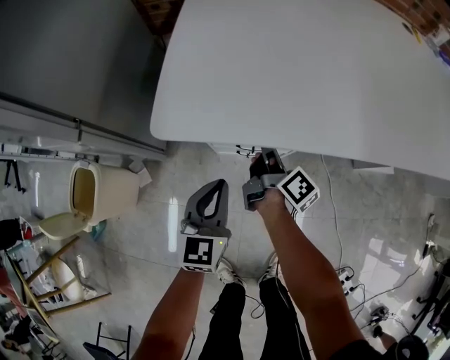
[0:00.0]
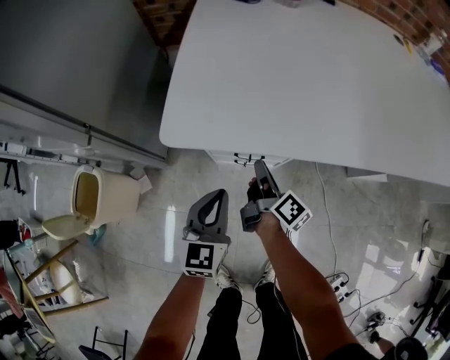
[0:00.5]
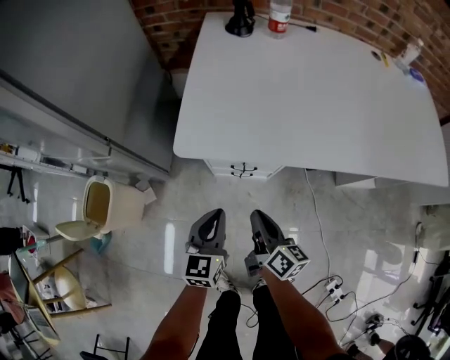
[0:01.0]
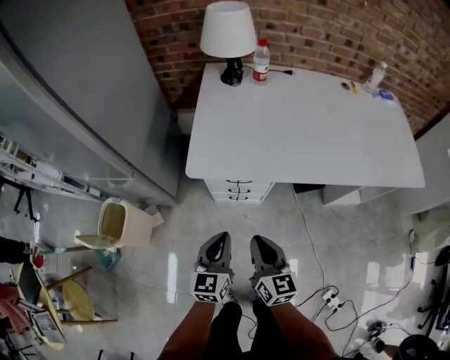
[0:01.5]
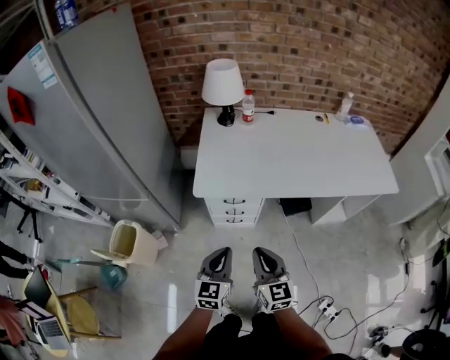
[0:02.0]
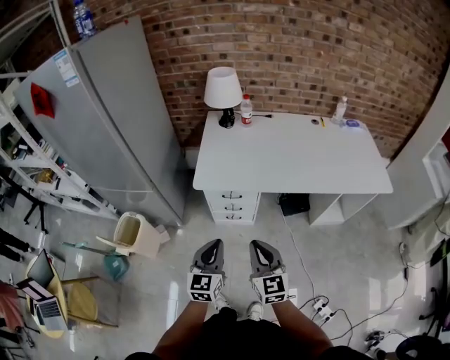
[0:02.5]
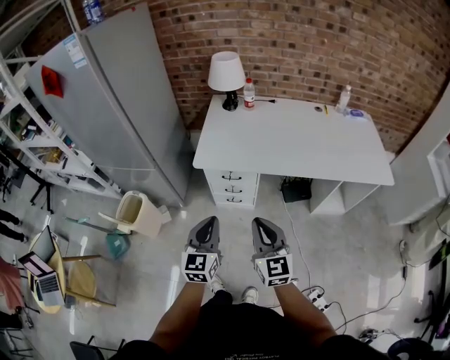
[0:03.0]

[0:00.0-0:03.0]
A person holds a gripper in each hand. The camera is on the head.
0:00.0 to 0:01.5: The left gripper travels upward and backward by some 20 cm; the right gripper goes about 35 cm backward and upward, and rolls counterclockwise, seen from behind, by some 60 degrees.
0:01.5 to 0:03.0: The two grippers go roughly 25 cm upward and backward. The right gripper turns by approximately 20 degrees.

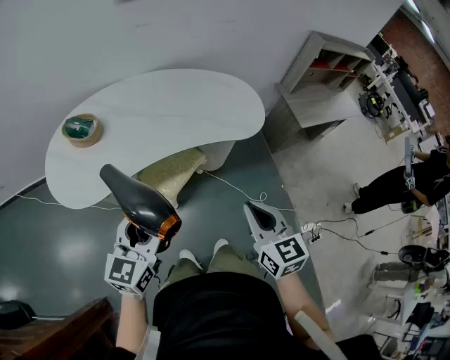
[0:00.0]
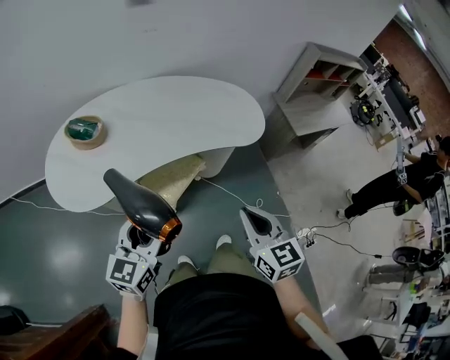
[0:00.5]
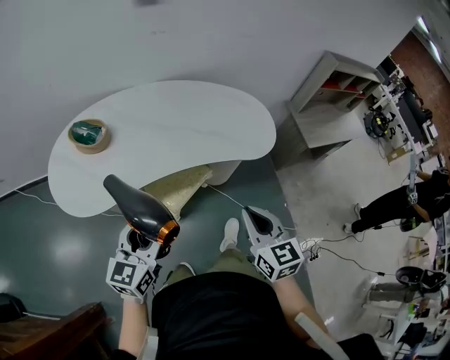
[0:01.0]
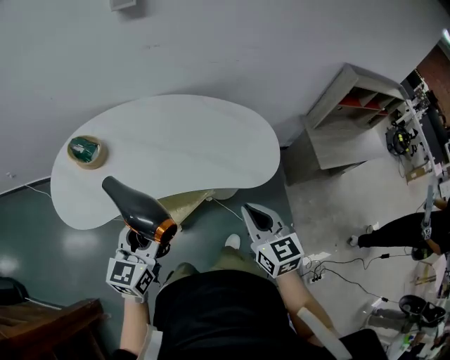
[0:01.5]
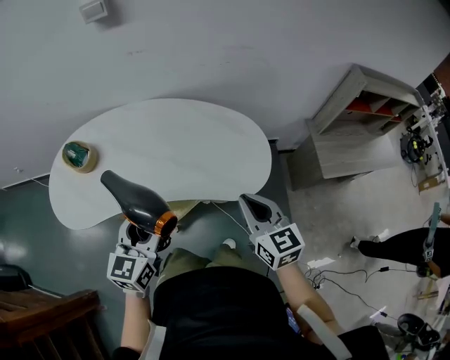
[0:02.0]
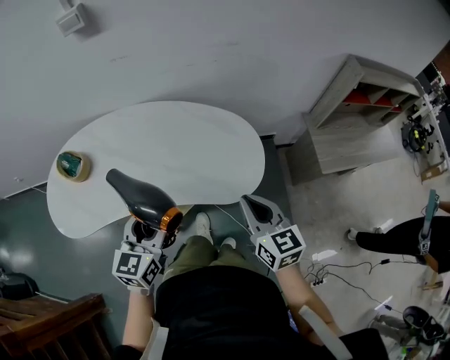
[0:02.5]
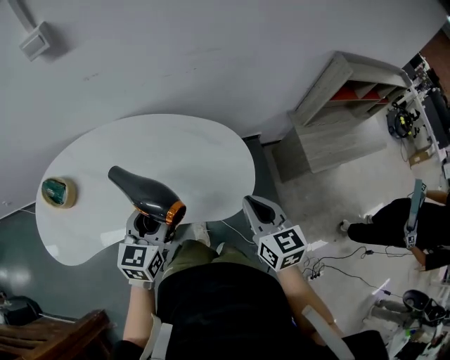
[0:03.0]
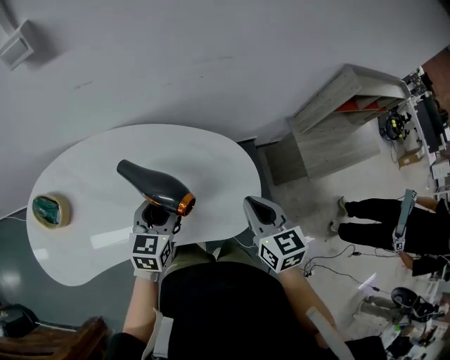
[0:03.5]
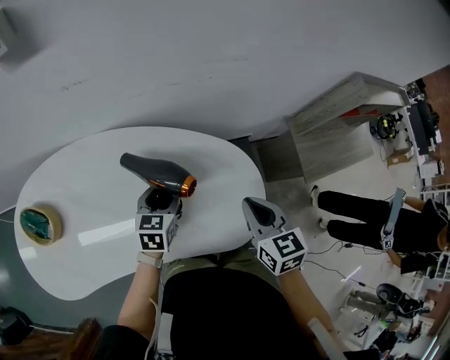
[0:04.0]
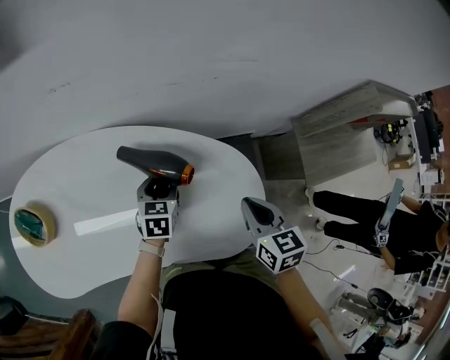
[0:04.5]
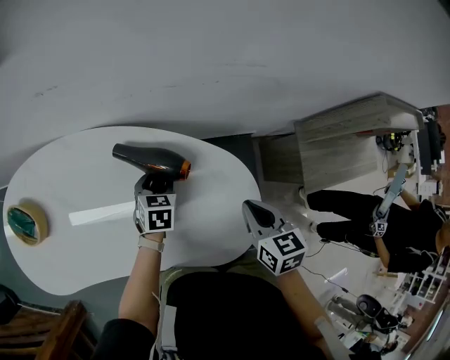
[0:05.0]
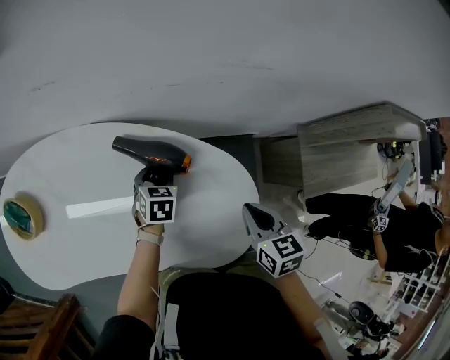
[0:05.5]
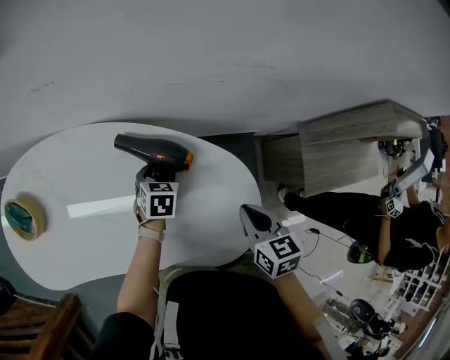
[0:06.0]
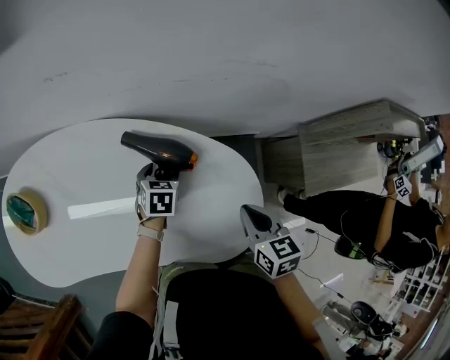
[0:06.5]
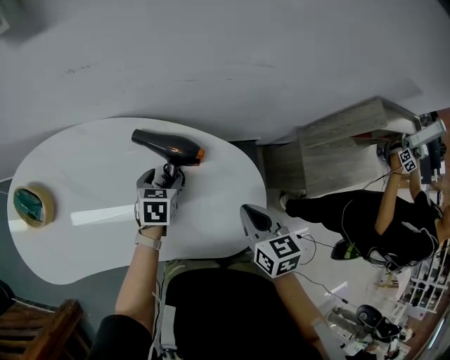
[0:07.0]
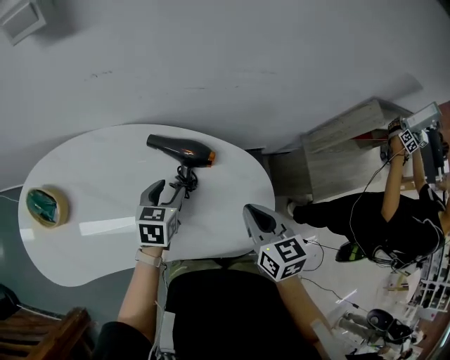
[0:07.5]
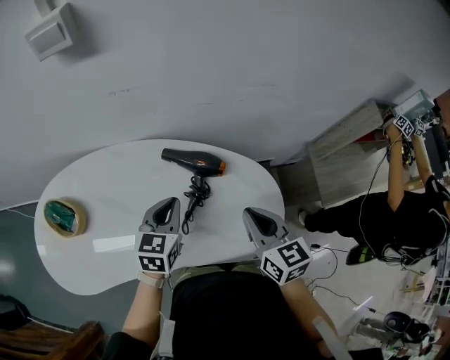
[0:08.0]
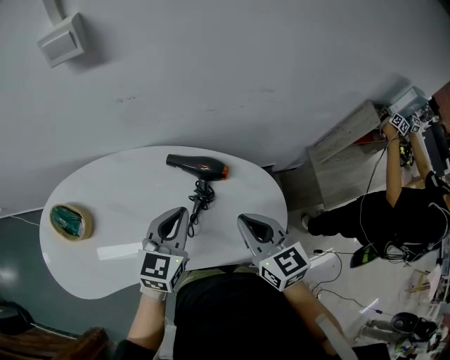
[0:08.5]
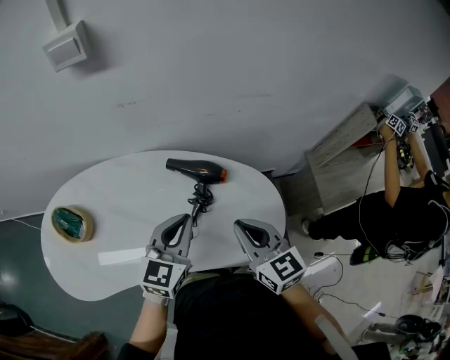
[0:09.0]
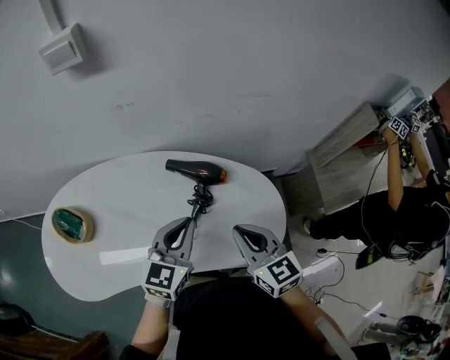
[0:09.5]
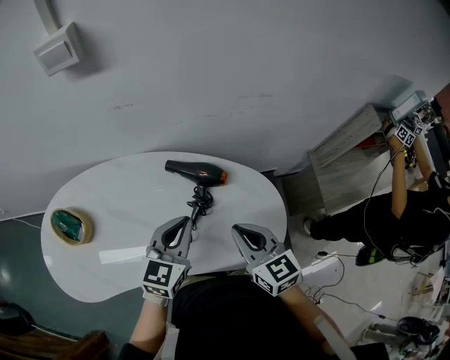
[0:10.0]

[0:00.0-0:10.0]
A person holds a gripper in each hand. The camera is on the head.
0:00.0 to 0:02.0: The two grippers go about 30 cm forward and to the right.
0:02.0 to 0:04.0: The left gripper goes some 40 cm forward and downward, and changes its angle by roughly 30 degrees, while the right gripper is displaced forward by approximately 25 cm, and swivels roughly 20 degrees.
0:04.0 to 0:06.0: Both grippers move downward and forward, about 10 cm. The left gripper turns by roughly 20 degrees.
0:06.0 to 0:08.0: The left gripper travels upward, backward and to the left by about 25 cm, changes its angle by about 30 degrees, and closes; the right gripper is displaced to the left, upward and backward by about 15 cm, and turns by some 20 degrees.
0:08.0 to 0:10.0: The left gripper heads upward, covering some 5 cm.

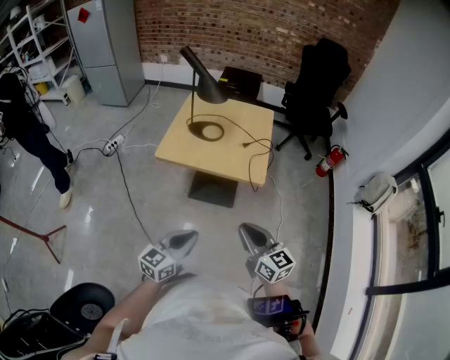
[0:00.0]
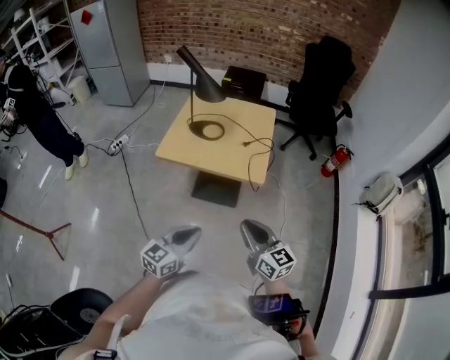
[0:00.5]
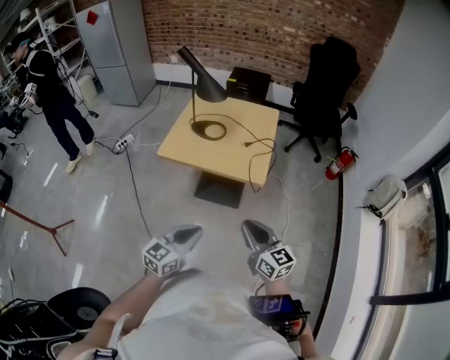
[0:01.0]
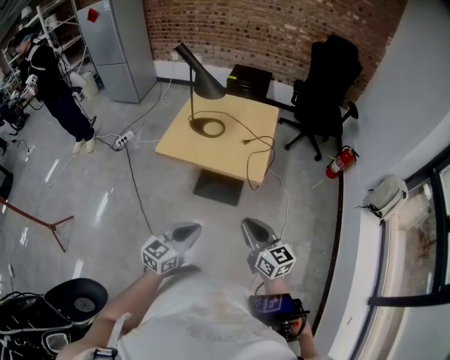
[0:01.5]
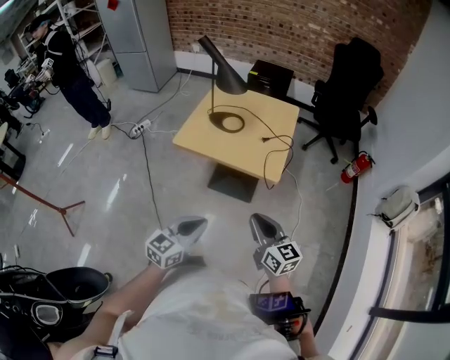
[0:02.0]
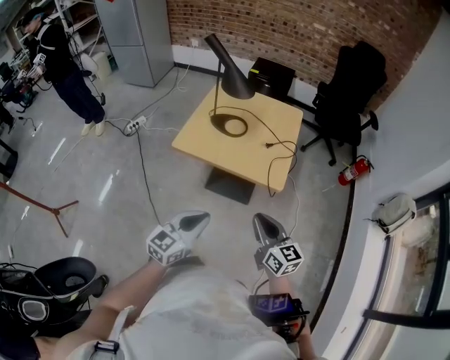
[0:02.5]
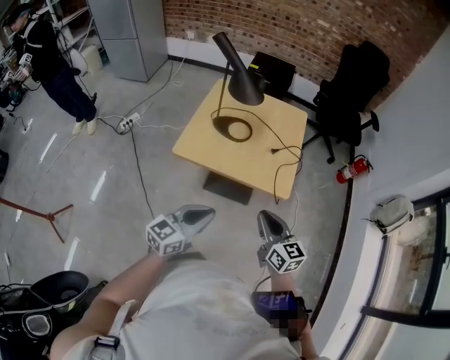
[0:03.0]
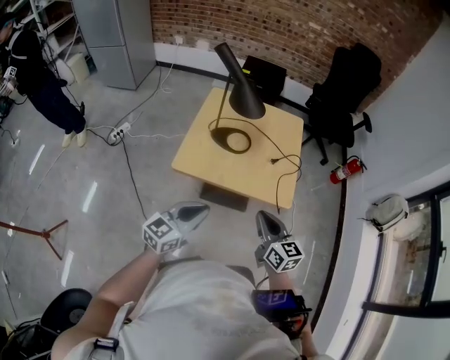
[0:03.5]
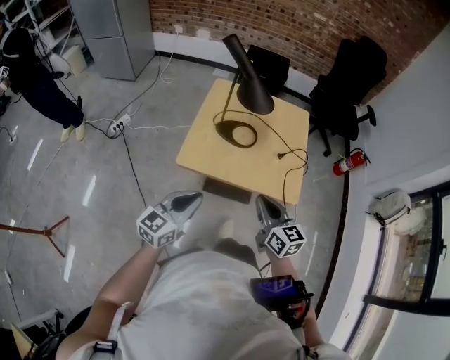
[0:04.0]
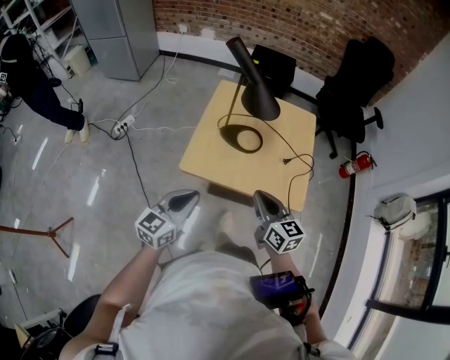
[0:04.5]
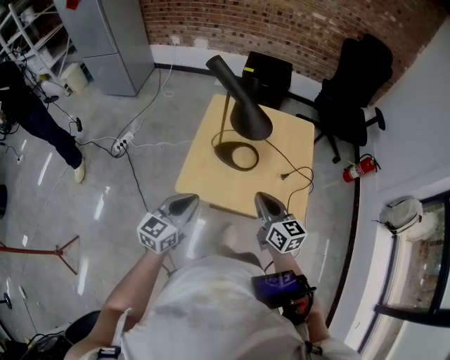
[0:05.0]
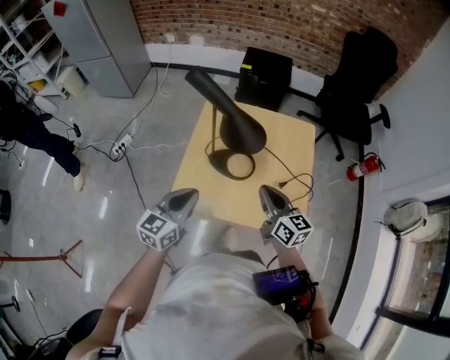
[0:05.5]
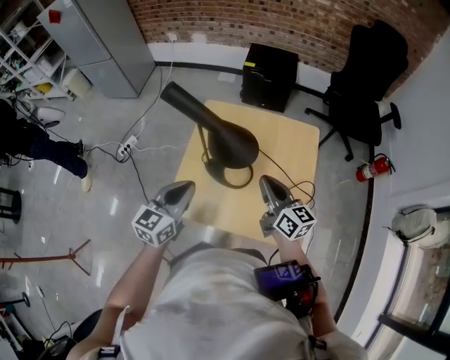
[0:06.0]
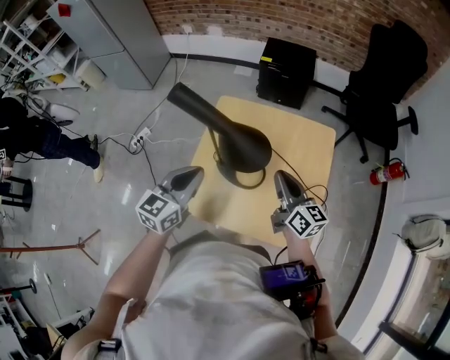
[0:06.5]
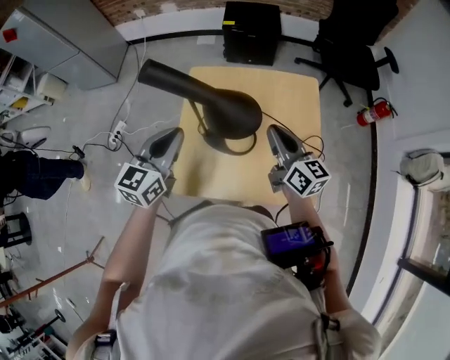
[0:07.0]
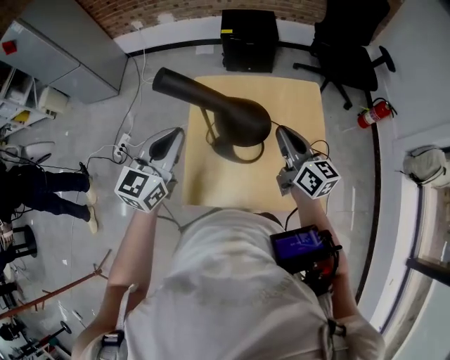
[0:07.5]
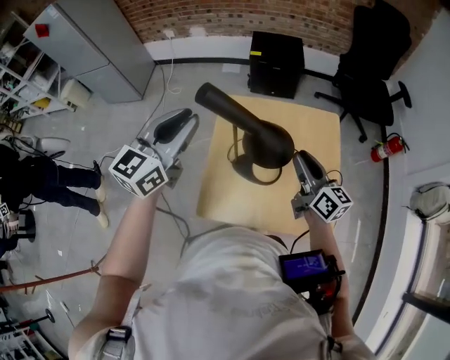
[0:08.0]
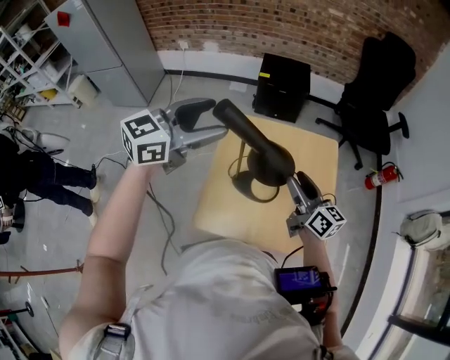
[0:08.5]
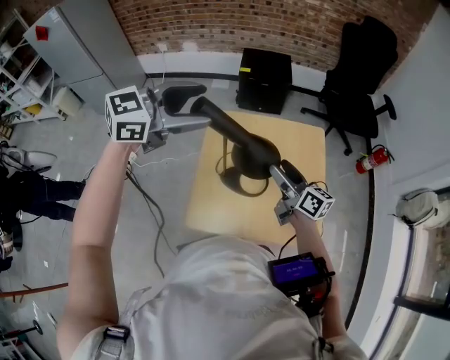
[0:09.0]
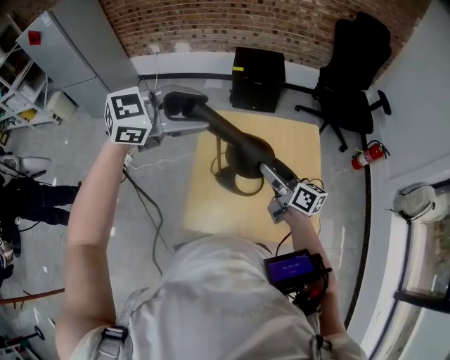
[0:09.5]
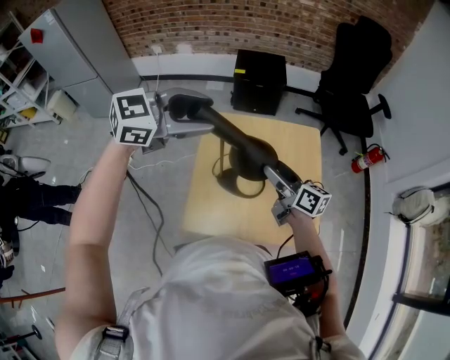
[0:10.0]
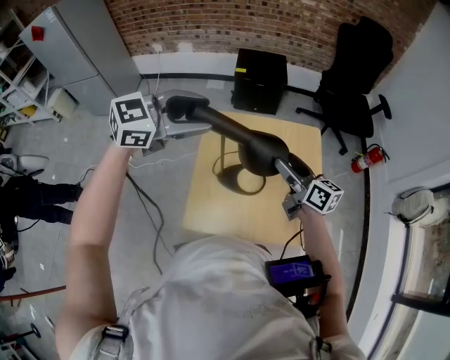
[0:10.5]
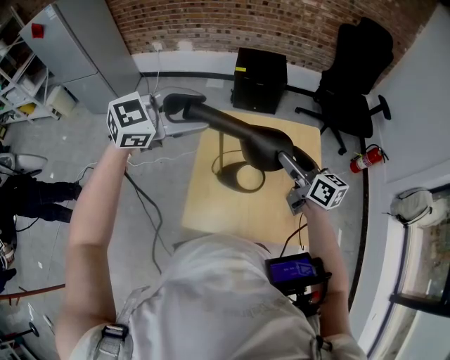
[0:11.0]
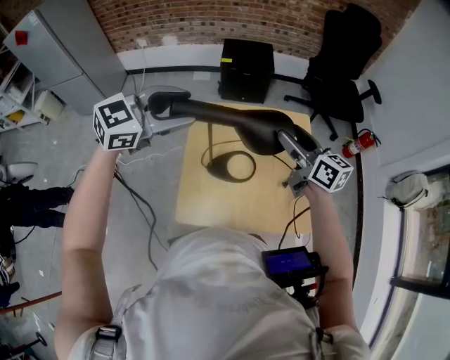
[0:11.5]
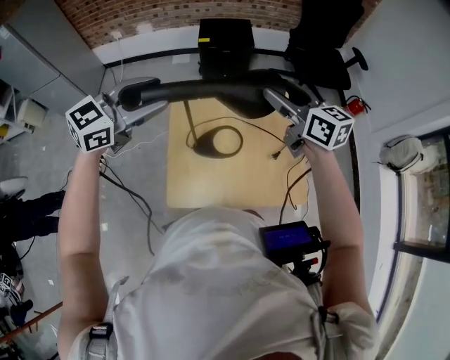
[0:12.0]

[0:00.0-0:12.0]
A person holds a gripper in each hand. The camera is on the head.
0:00.0 to 0:02.0: The right gripper changes place by roughly 5 cm.
0:02.0 to 0:04.0: Both grippers travel together forward and to the left, roughly 25 cm.
0:04.0 to 0:06.0: The two grippers go approximately 25 cm forward.
0:06.0 to 0:08.0: The left gripper is displaced upward, forward and to the left by roughly 20 cm; the right gripper shifts by approximately 5 cm.
0:08.0 to 0:10.0: The left gripper heads to the right, covering about 5 cm, rotates some 40 degrees, and opens. Meanwhile the right gripper opens up.
0:10.0 to 0:12.0: The left gripper moves some 5 cm, while the right gripper is displaced upward and forward by approximately 15 cm, and turns by about 30 degrees.

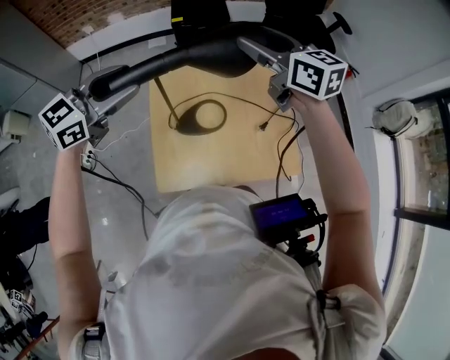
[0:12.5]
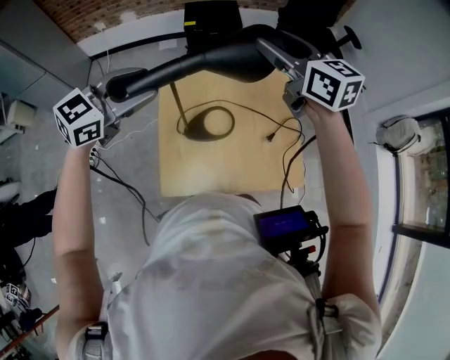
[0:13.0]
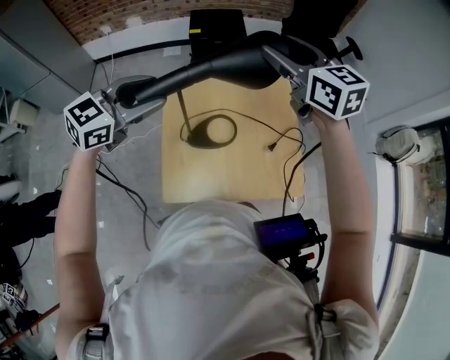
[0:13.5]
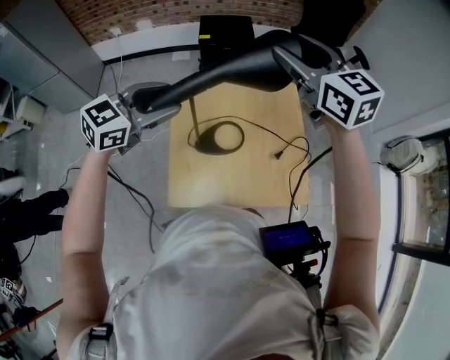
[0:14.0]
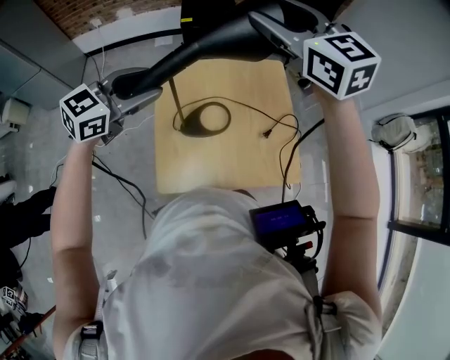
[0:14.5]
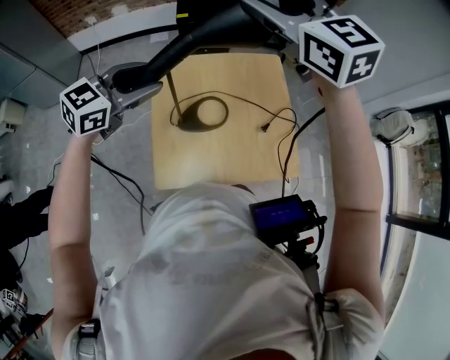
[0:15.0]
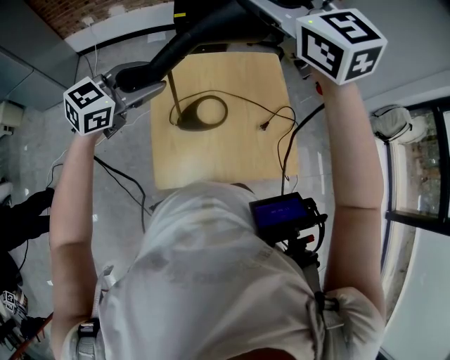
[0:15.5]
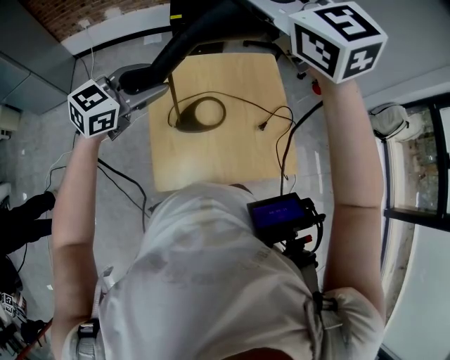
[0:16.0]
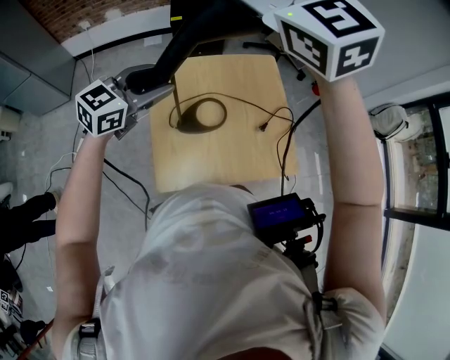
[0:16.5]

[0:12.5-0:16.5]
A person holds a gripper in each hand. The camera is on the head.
0:12.5 to 0:14.5: The right gripper moves upward, roughly 10 cm, and swivels some 30 degrees.
0:14.5 to 0:16.5: The right gripper travels upward and to the left by about 10 cm.
